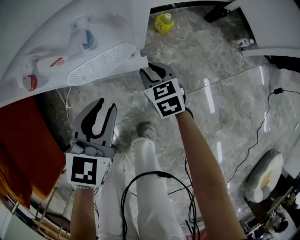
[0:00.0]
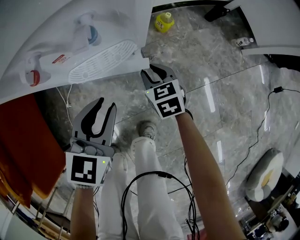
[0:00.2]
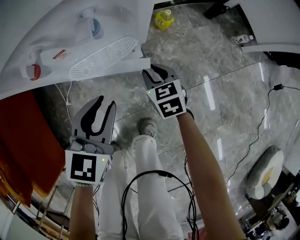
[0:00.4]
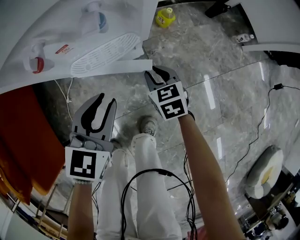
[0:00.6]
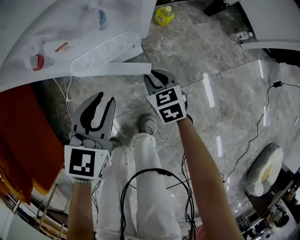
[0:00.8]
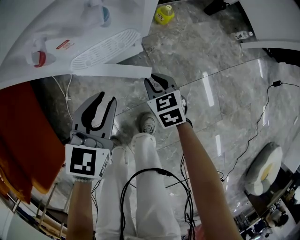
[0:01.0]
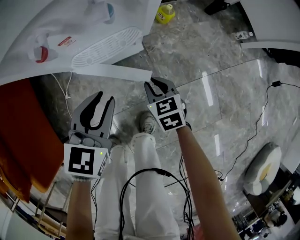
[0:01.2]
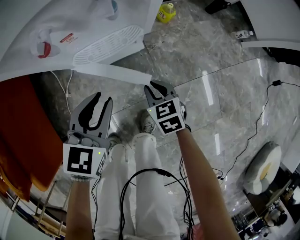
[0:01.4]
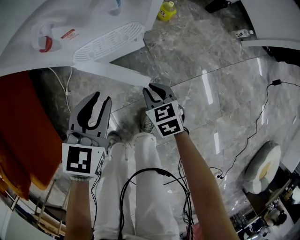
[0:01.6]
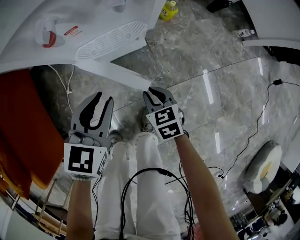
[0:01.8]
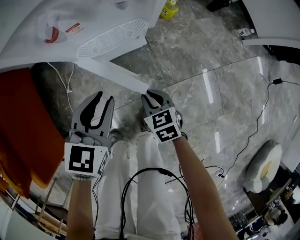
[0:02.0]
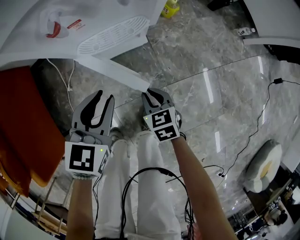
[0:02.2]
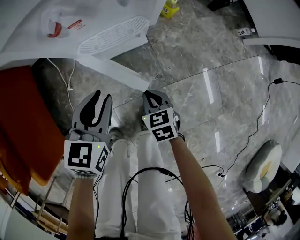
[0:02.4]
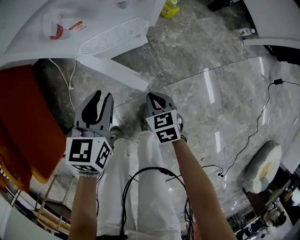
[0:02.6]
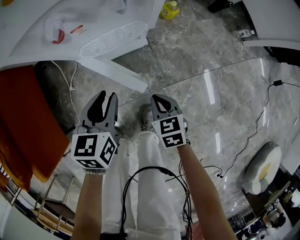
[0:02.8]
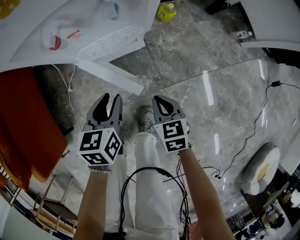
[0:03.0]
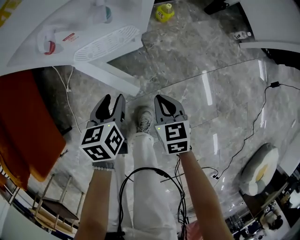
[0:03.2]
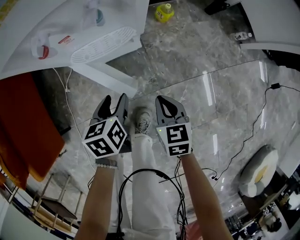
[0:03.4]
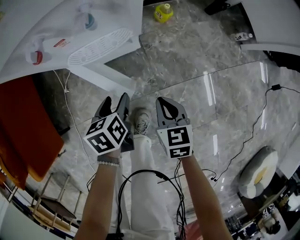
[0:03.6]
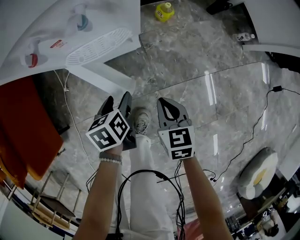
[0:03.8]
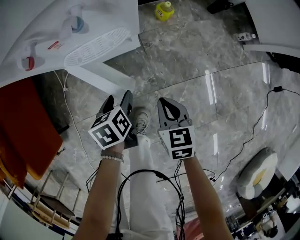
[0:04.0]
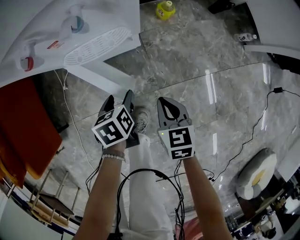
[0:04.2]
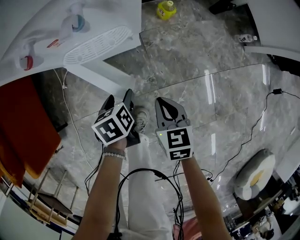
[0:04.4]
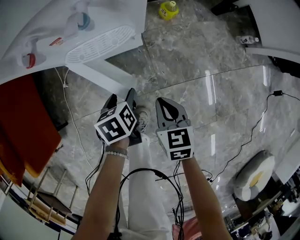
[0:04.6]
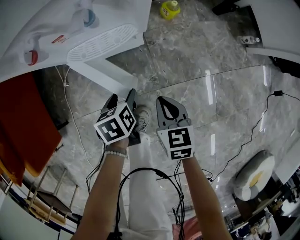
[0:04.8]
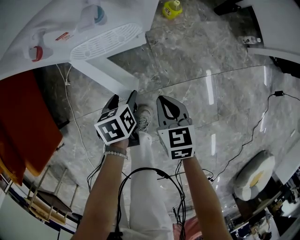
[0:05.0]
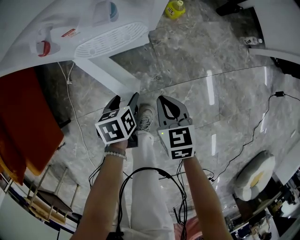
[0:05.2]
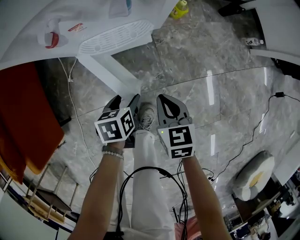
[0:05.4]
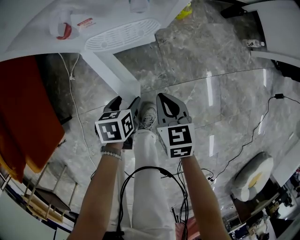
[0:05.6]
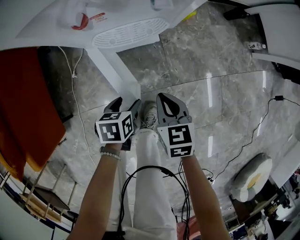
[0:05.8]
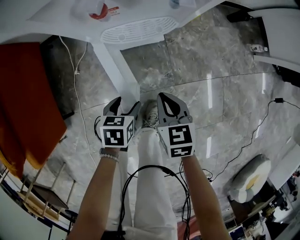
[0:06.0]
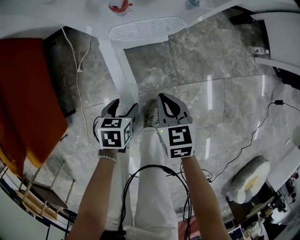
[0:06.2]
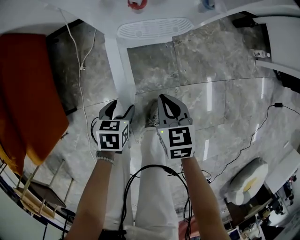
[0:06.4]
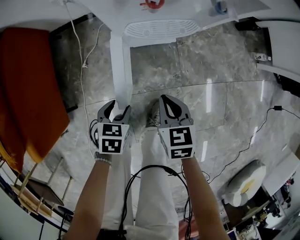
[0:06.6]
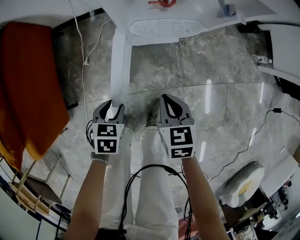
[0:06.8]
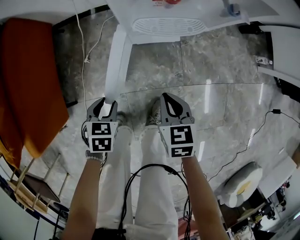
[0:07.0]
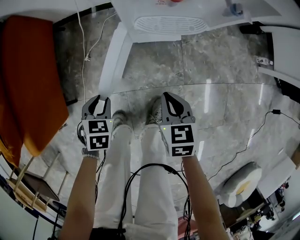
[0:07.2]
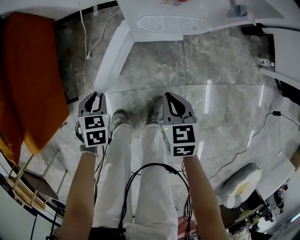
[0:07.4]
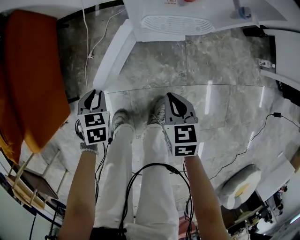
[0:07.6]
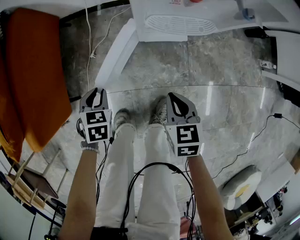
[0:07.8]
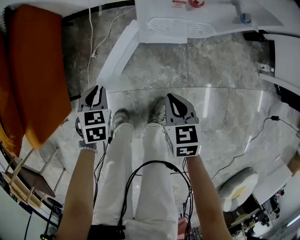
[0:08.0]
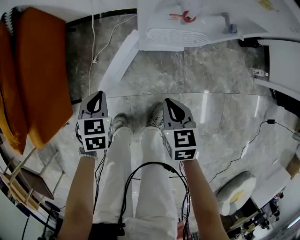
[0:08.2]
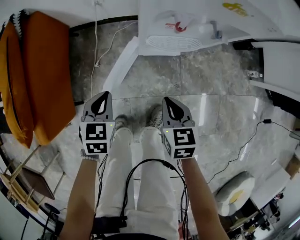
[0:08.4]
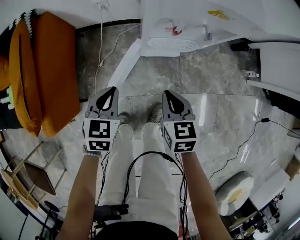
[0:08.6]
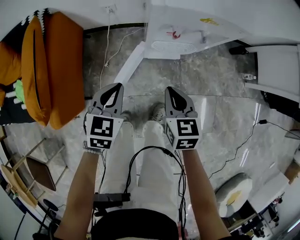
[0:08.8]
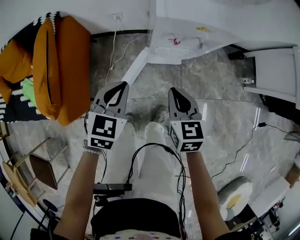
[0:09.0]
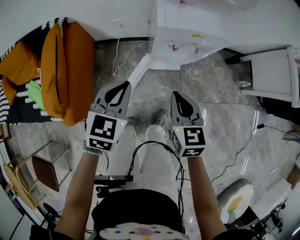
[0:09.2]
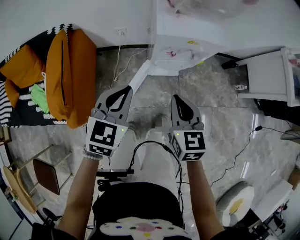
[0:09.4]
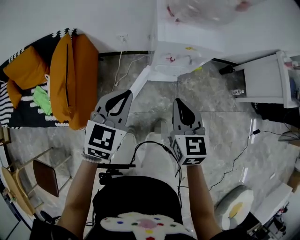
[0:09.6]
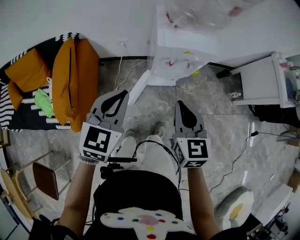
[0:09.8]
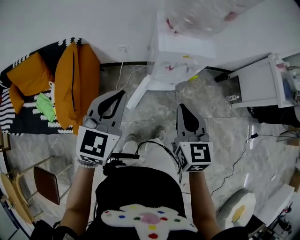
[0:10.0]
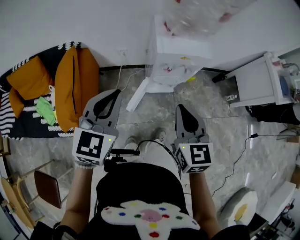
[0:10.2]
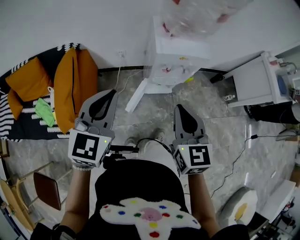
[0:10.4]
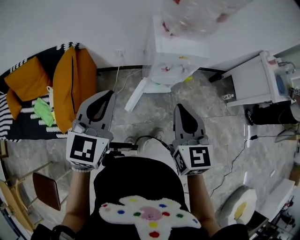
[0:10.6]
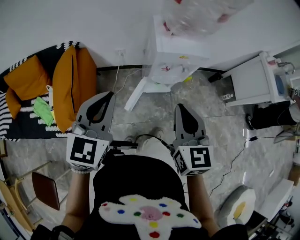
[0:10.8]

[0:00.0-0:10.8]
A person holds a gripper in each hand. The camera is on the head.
0:00.0 to 0:01.6: The left gripper ends up about 5 cm from where it was, while the right gripper is displaced backward by some 15 cm.
0:01.6 to 0:03.0: The right gripper moves upward, roughly 5 cm; the left gripper swivels about 30 degrees.
0:03.0 to 0:04.6: The right gripper moves approximately 5 cm, while the left gripper is displaced downward and to the right by about 10 cm, turns by roughly 30 degrees, and opens up.
0:04.6 to 0:06.2: The right gripper travels to the left by about 15 cm. The left gripper travels to the left and backward by about 15 cm, and changes its angle by approximately 20 degrees.
0:06.2 to 0:07.8: The left gripper shifts by roughly 20 cm, changes its angle by approximately 30 degrees, and closes.
0:07.8 to 0:09.2: The grippers both shift upward by roughly 40 cm. The left gripper angles its fingers upward, by some 30 degrees. Meanwhile the right gripper swivels approximately 20 degrees.
0:09.2 to 0:10.8: The right gripper travels upward by about 20 cm, while the left gripper is displaced upward and to the left by about 20 cm.

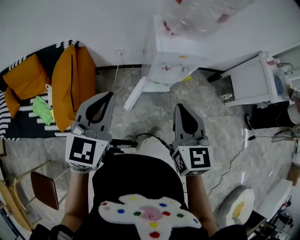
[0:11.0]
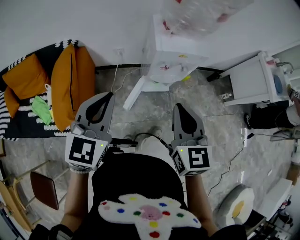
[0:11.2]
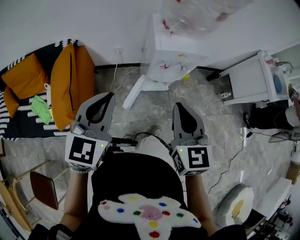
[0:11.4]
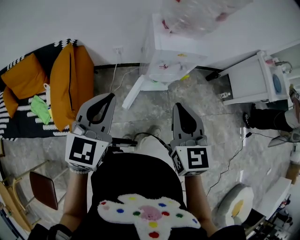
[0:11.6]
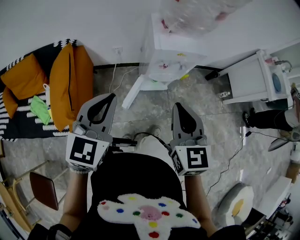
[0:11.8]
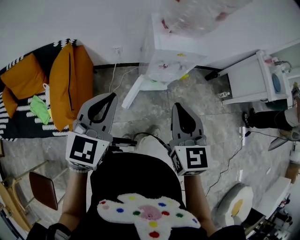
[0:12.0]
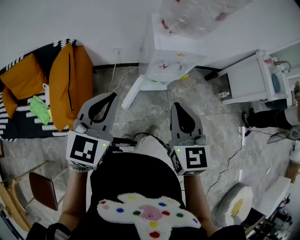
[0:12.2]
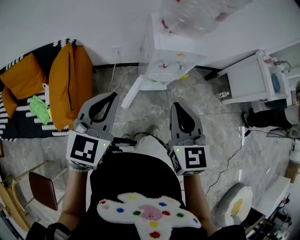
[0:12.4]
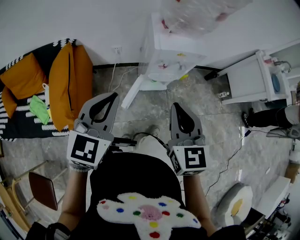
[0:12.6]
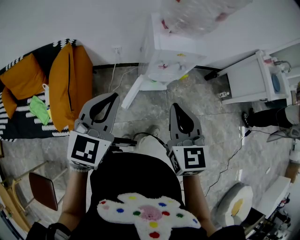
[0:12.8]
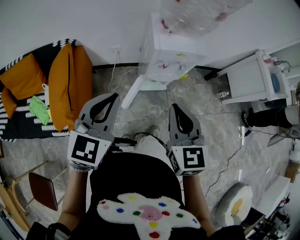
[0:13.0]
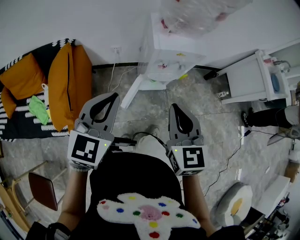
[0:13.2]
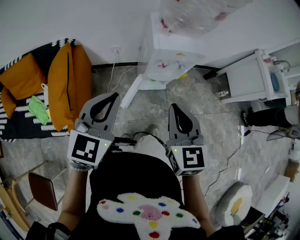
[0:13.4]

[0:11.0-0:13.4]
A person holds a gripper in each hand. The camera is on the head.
0:11.0 to 0:12.2: The grippers stay close to where they were, moving slightly.
0:12.2 to 0:13.4: Neither gripper changes place.

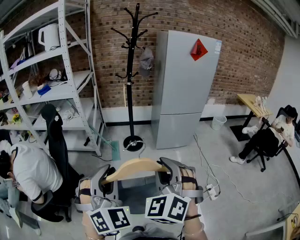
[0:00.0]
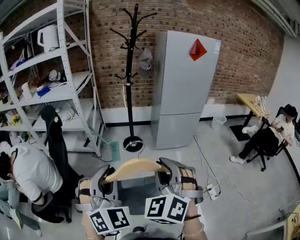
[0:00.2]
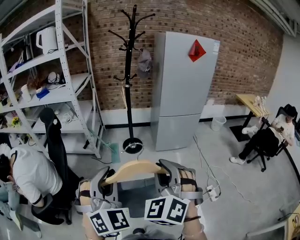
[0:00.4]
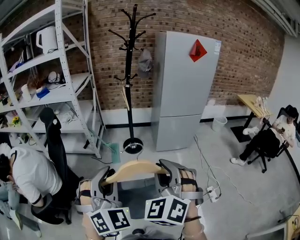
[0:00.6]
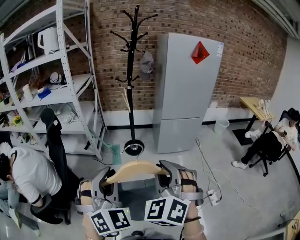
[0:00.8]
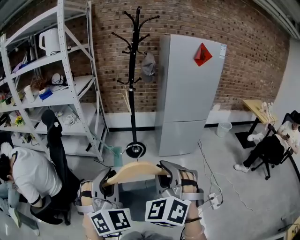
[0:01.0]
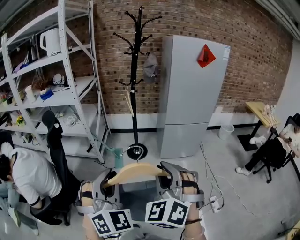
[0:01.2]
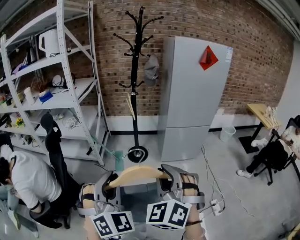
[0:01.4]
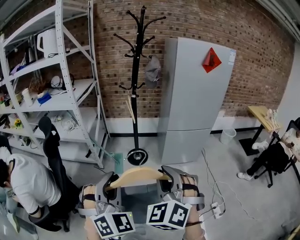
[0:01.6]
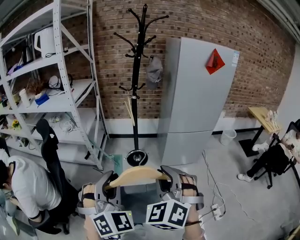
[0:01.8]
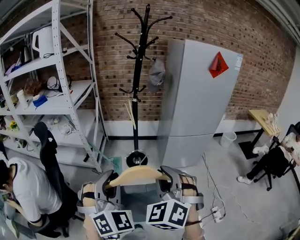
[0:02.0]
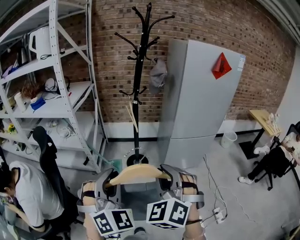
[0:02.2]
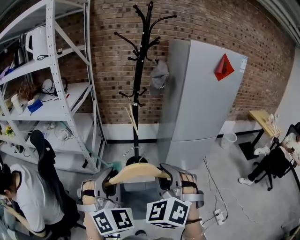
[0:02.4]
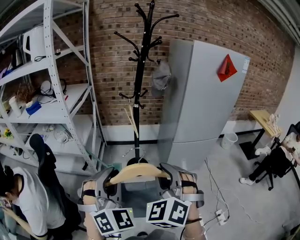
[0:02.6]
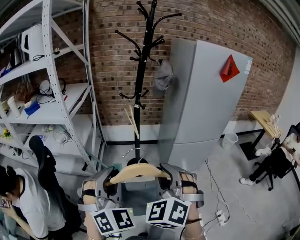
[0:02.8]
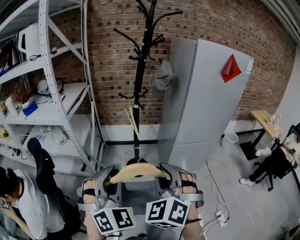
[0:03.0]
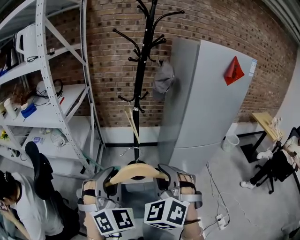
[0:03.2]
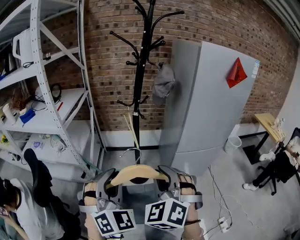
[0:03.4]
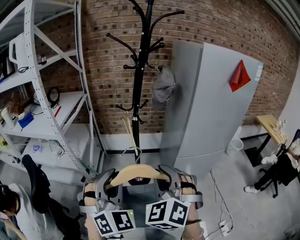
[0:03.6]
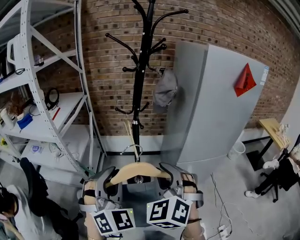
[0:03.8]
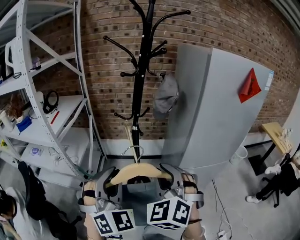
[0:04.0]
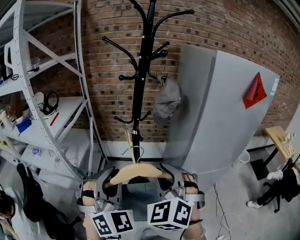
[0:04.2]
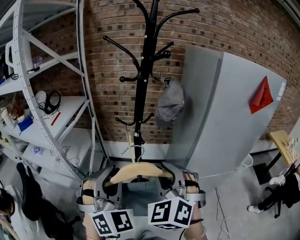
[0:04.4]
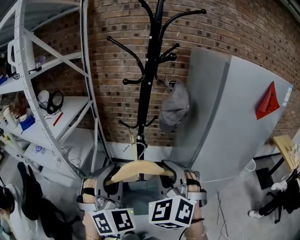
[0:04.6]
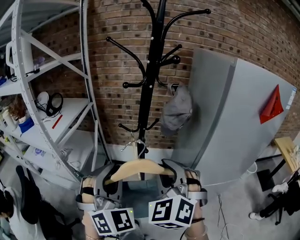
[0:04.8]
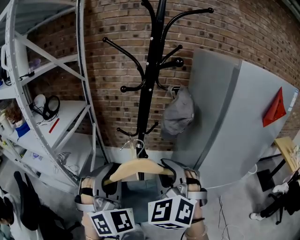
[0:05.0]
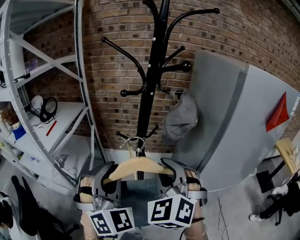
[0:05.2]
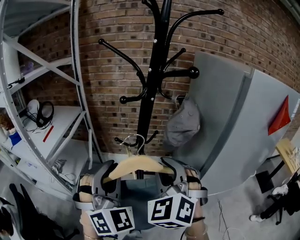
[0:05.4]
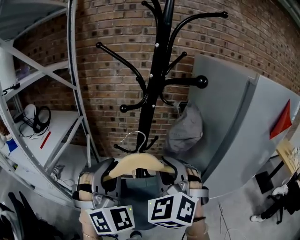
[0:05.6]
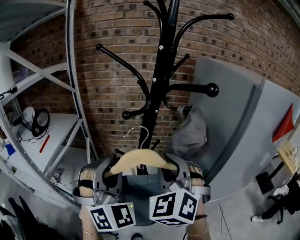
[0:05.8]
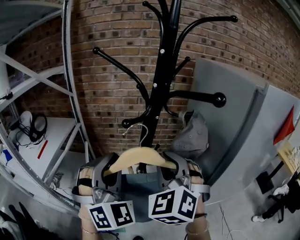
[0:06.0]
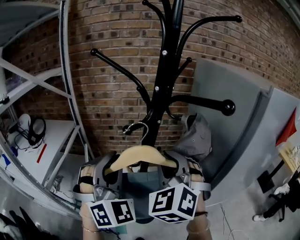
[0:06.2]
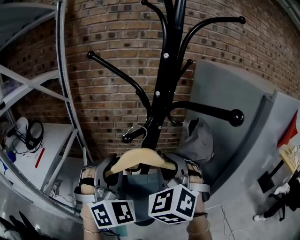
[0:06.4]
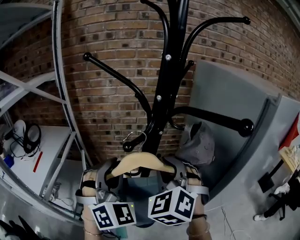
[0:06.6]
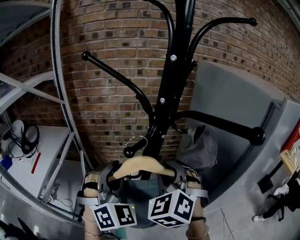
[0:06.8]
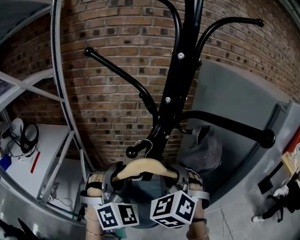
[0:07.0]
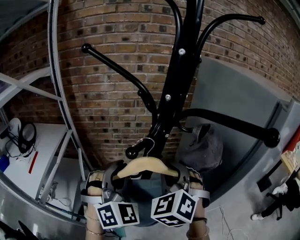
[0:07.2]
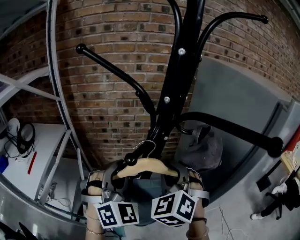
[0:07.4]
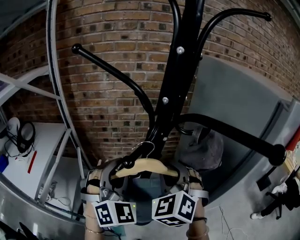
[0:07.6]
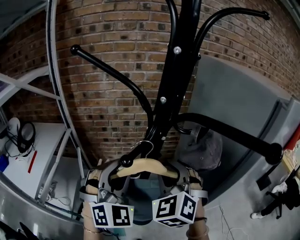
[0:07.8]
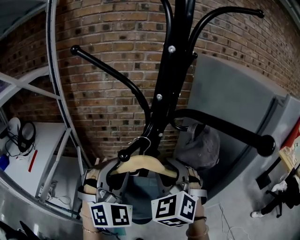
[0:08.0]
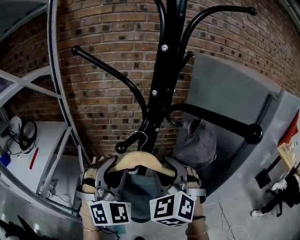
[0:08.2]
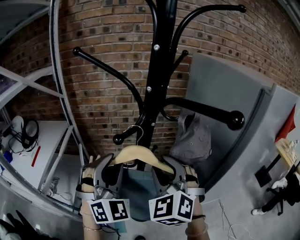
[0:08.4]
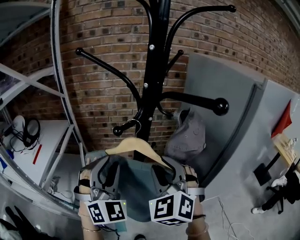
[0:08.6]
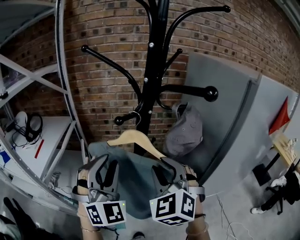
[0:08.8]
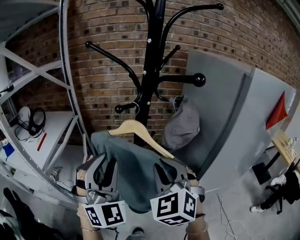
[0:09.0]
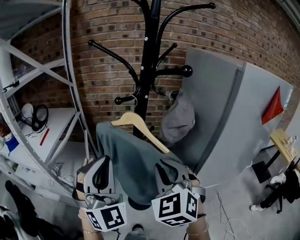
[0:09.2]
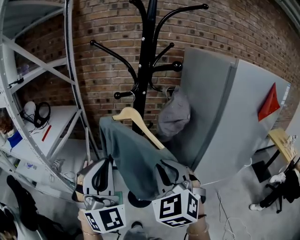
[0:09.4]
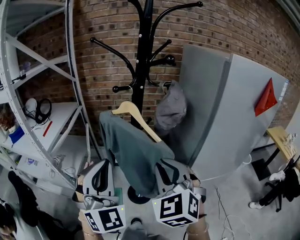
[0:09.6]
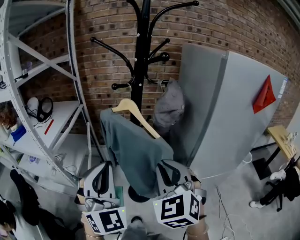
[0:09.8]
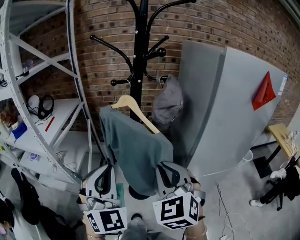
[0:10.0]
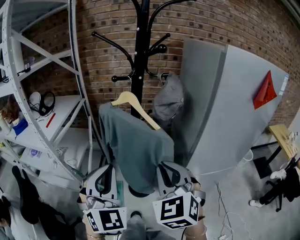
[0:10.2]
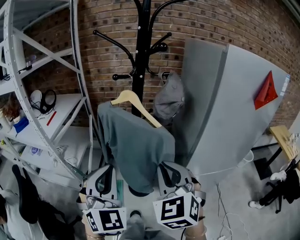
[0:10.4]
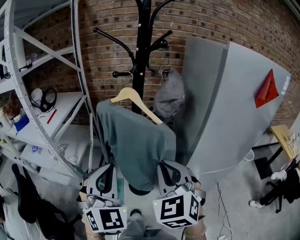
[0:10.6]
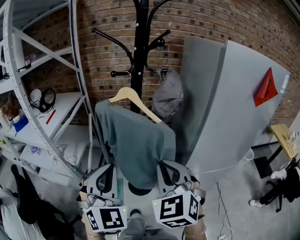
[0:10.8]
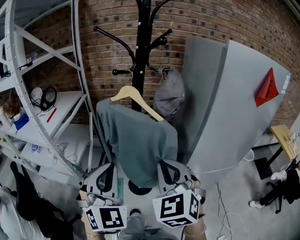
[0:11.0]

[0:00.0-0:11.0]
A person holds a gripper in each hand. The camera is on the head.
0:00.0 to 0:01.6: The two grippers go roughly 15 cm forward.
0:01.6 to 0:03.2: The two grippers go some 25 cm forward.
0:03.2 to 0:04.8: Both grippers move forward, about 25 cm.
0:04.8 to 0:06.2: The grippers both shift forward by roughly 20 cm.
0:06.2 to 0:07.8: Both grippers move forward and downward, about 10 cm.
0:07.8 to 0:09.4: The grippers both shift backward by roughly 20 cm. The left gripper rotates roughly 20 degrees, and closes up.
0:09.4 to 0:11.0: The right gripper travels backward by roughly 10 cm. The left gripper heads backward and downward, covering some 10 cm.
